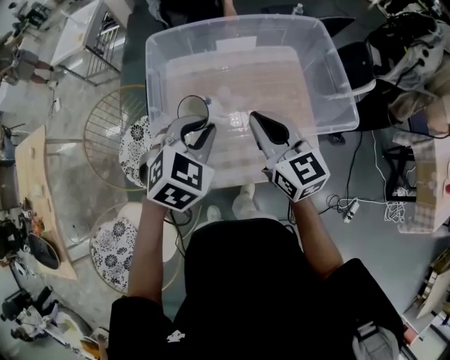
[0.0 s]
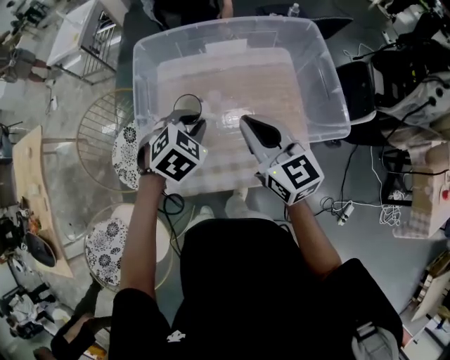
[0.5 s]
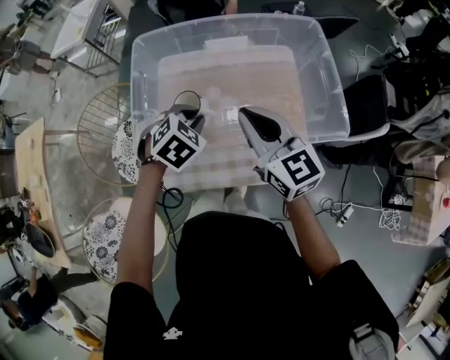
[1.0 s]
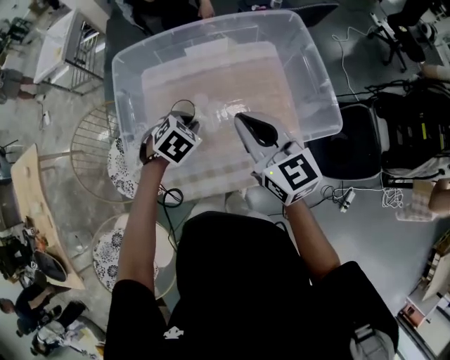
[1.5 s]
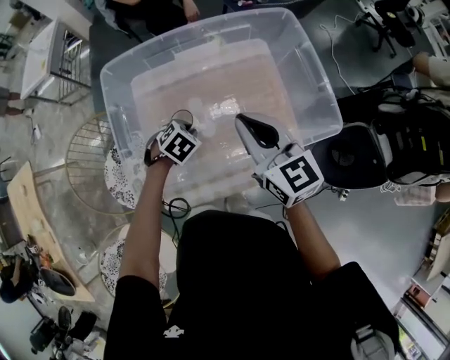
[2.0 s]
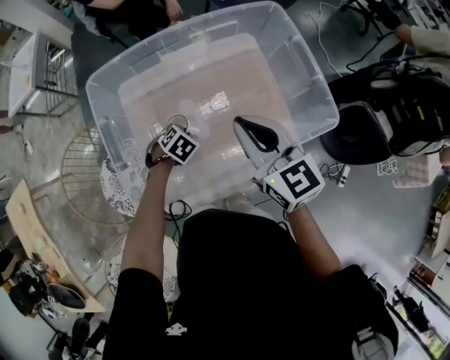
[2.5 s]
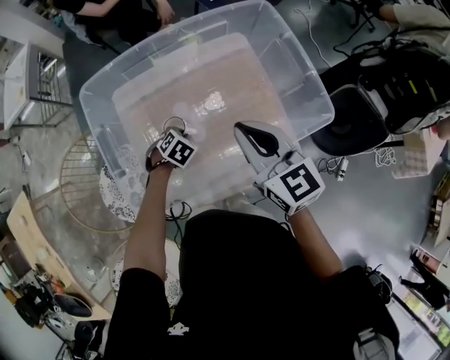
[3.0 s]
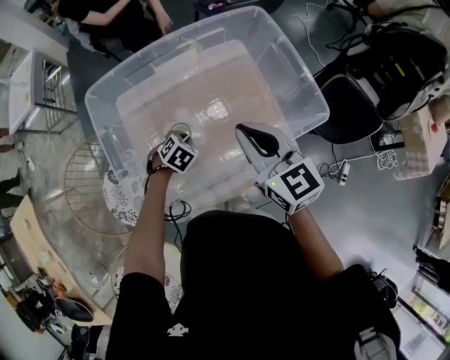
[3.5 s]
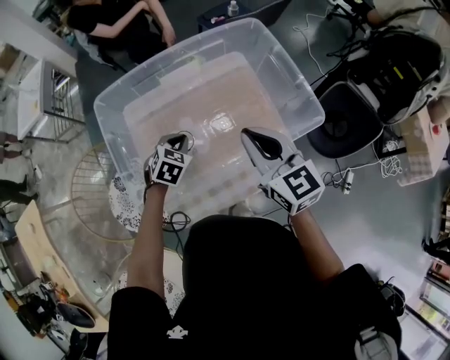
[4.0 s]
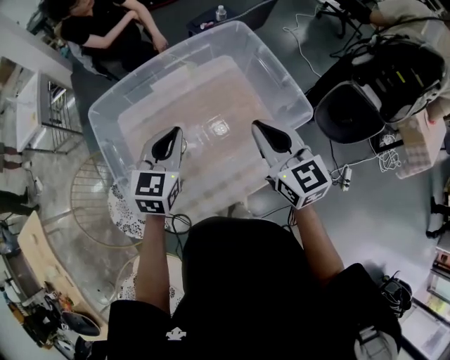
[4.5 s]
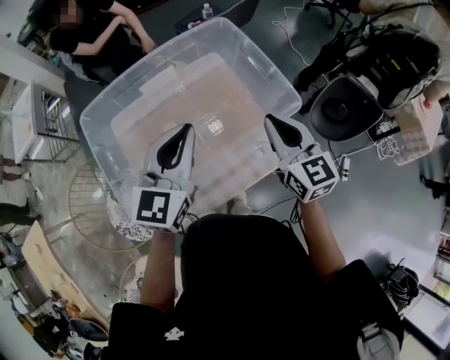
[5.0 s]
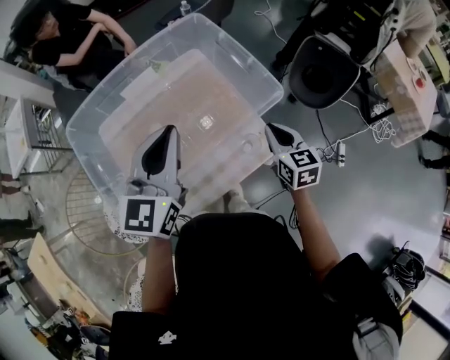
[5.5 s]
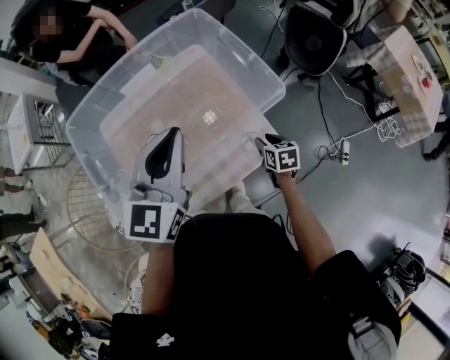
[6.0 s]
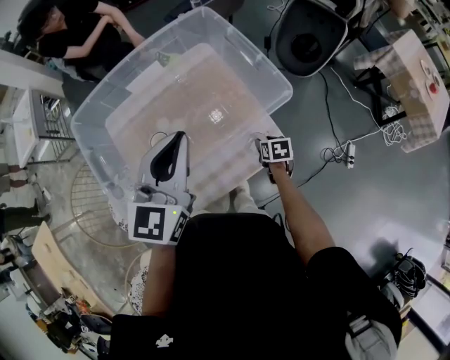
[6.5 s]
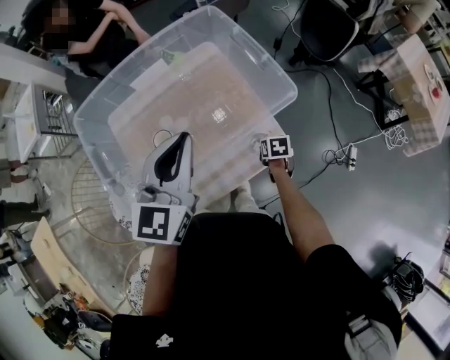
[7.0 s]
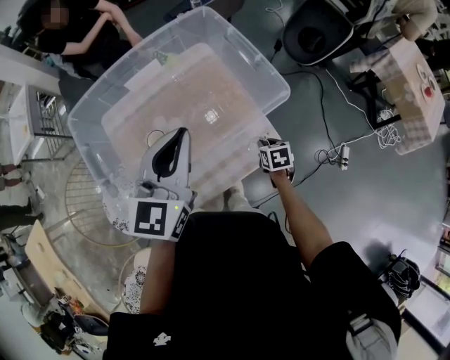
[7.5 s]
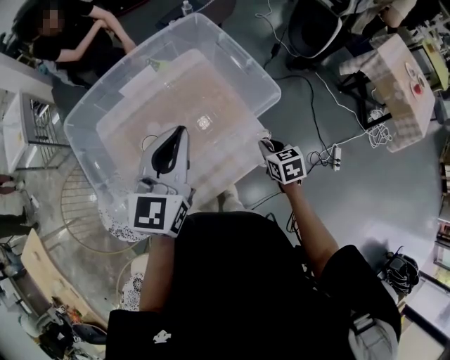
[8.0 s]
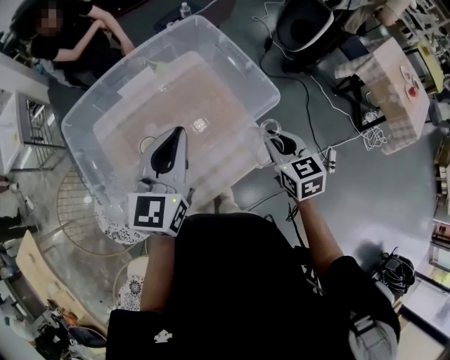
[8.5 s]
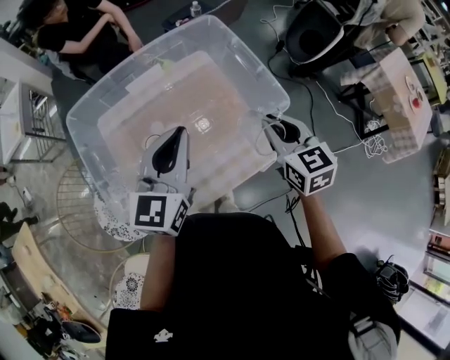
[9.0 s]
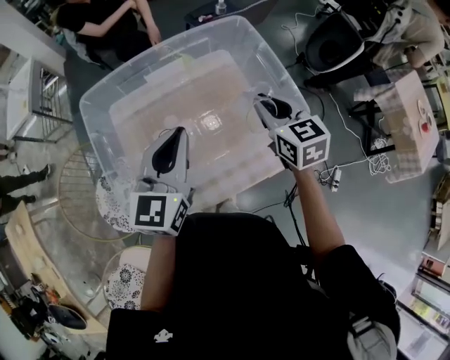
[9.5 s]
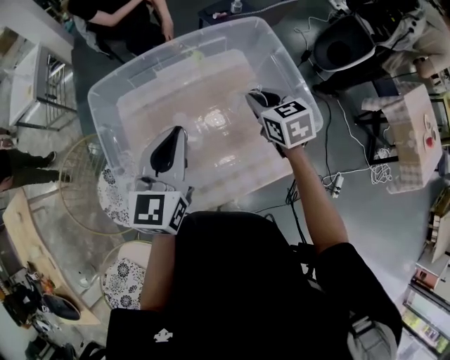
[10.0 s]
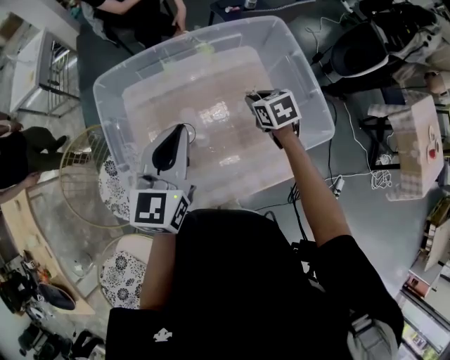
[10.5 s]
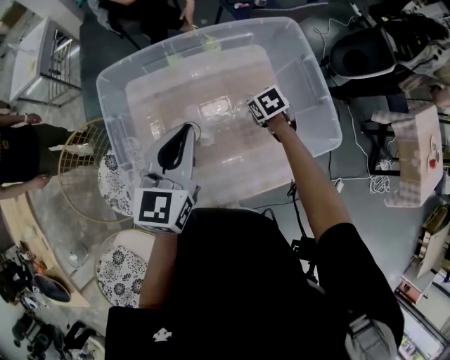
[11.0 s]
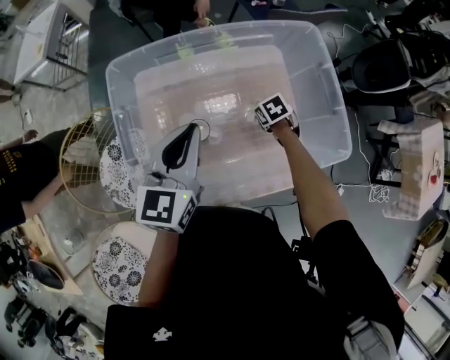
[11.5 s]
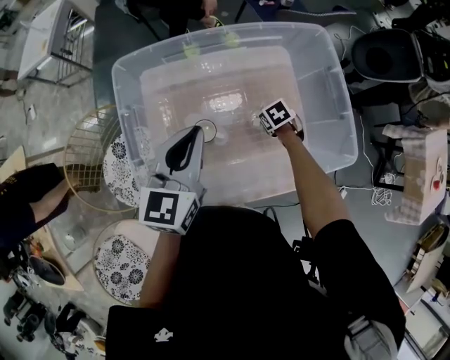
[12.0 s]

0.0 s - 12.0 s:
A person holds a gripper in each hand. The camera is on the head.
0.0 s - 2.0 s: The left gripper is displaced downward and forward by roughly 25 cm, and turns by about 30 degrees; the right gripper is displaced forward by roughly 5 cm.
2.0 s - 4.0 s: The left gripper reaches about 10 cm downward, then returns.
4.0 s - 6.0 s: The right gripper travels downward and to the right by approximately 35 cm, tilts its fingers roughly 40 degrees downward, and opens. Meanwhile the left gripper travels upward and to the right by approximately 30 cm, and tips its fingers upward by some 50 degrees.
6.0 s - 8.0 s: The right gripper is displaced upward by roughly 5 cm, and closes up.
8.0 s - 10.0 s: The left gripper moves to the left, approximately 10 cm. Meanwhile the right gripper goes roughly 30 cm forward, to the left and upward, and changes its angle by approximately 20 degrees.
10.0 s - 12.0 s: The left gripper ends up approximately 10 cm from where it was. The right gripper moves downward, roughly 25 cm, and angles its fingers downward, by about 40 degrees.

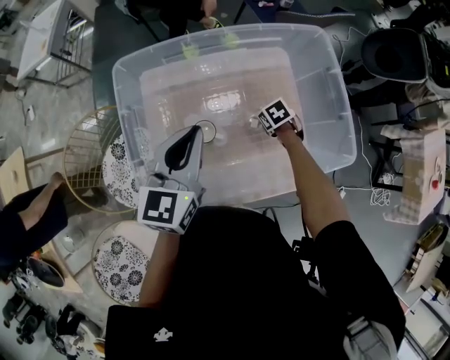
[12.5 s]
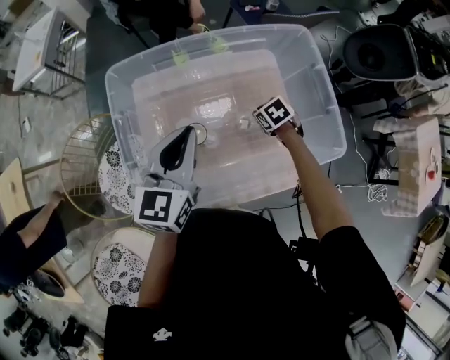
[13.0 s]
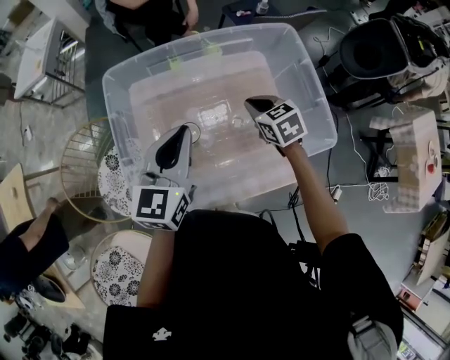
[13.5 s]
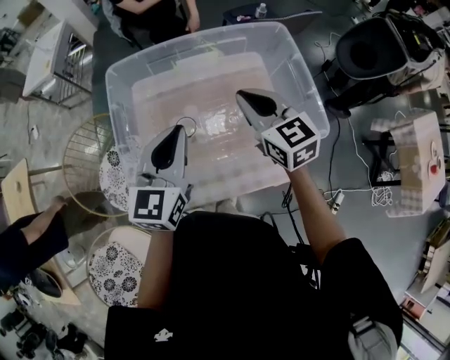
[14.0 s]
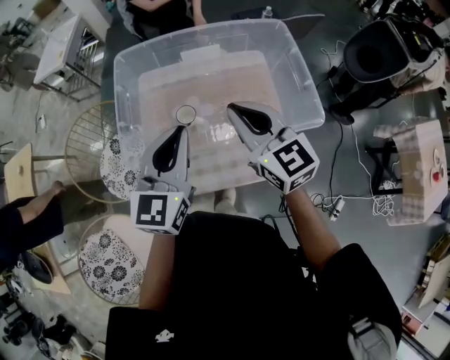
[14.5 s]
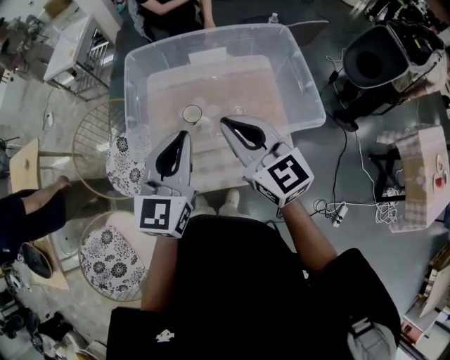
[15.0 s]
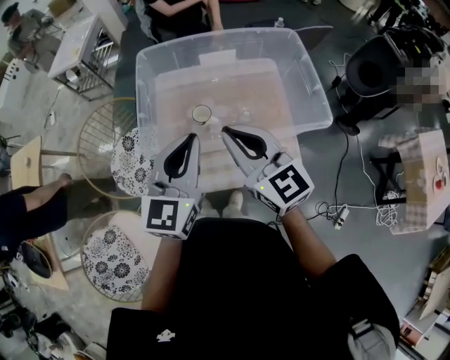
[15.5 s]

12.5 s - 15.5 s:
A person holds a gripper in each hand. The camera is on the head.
12.5 s - 14.0 s: The left gripper moves roughly 10 cm. Meanwhile the right gripper is displaced upward by some 35 cm, and tips its fingers upward by approximately 60 degrees.
14.0 s - 15.5 s: The left gripper is displaced backward by roughly 10 cm. The right gripper shifts roughly 20 cm backward and to the left.

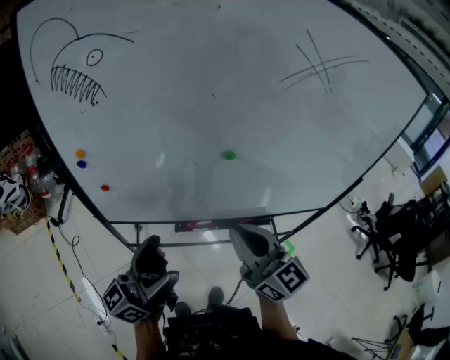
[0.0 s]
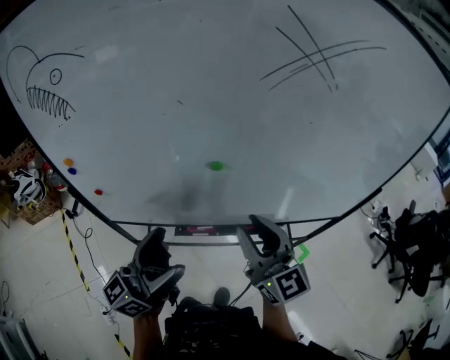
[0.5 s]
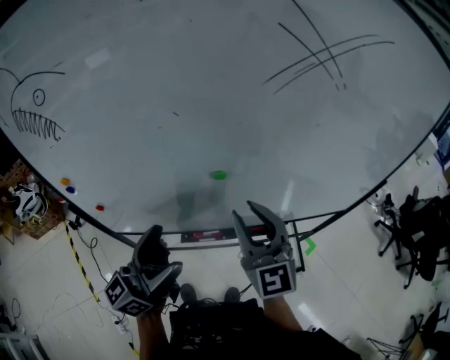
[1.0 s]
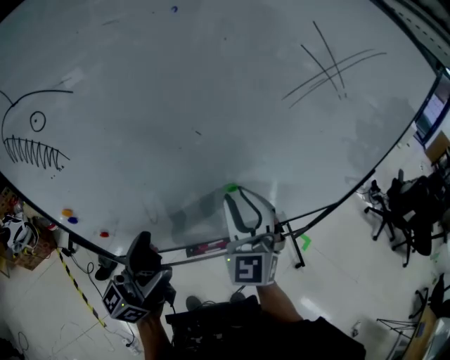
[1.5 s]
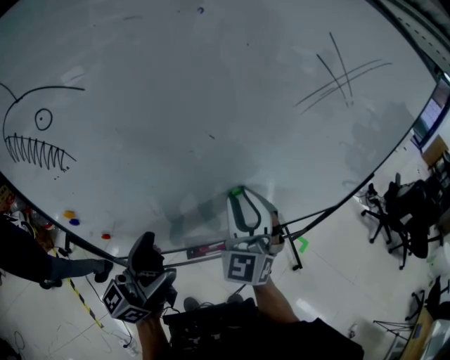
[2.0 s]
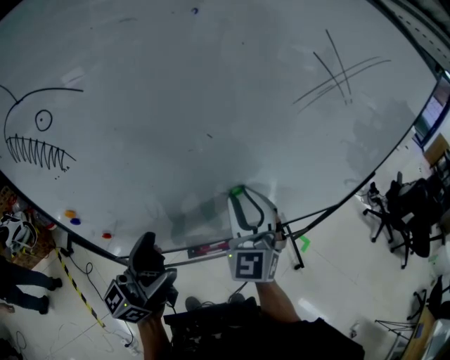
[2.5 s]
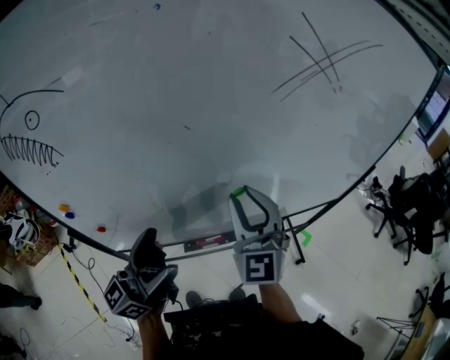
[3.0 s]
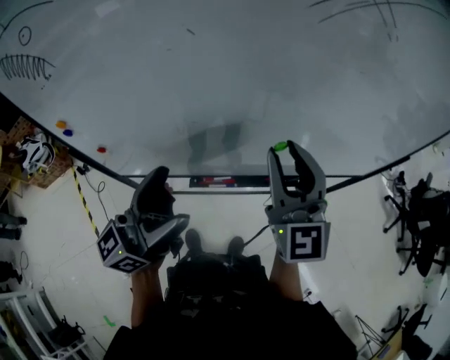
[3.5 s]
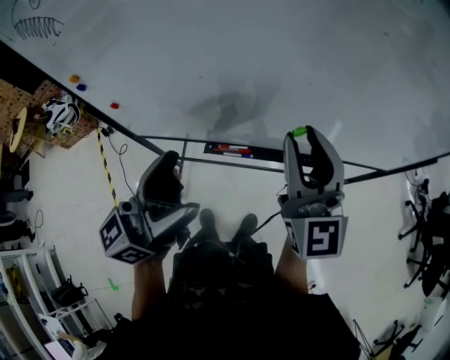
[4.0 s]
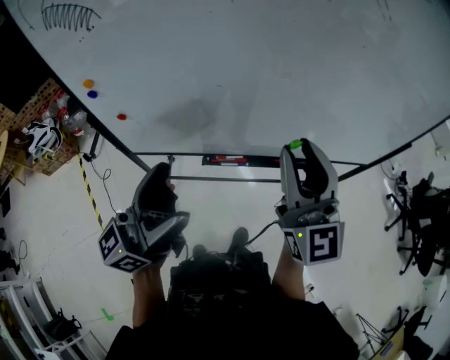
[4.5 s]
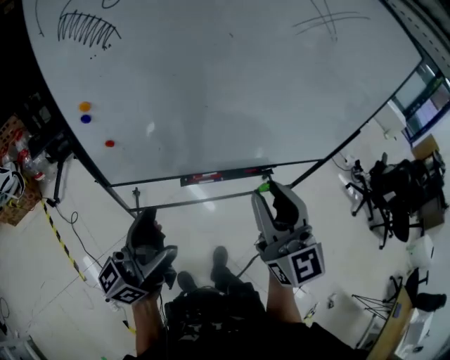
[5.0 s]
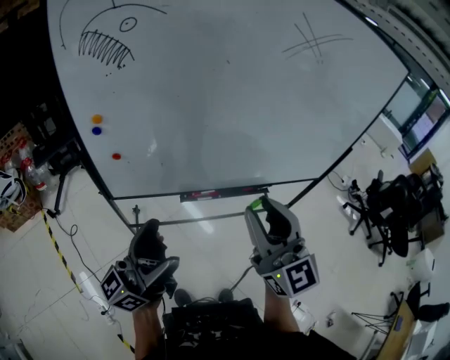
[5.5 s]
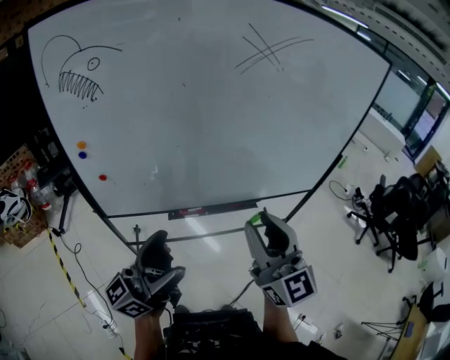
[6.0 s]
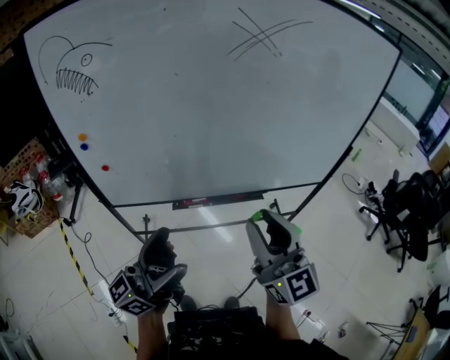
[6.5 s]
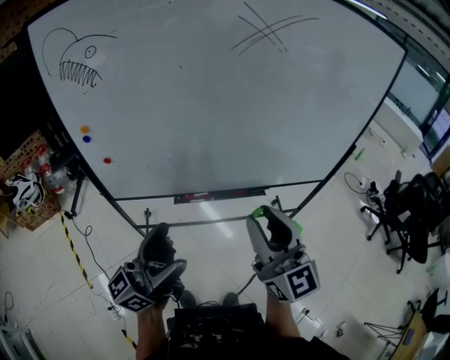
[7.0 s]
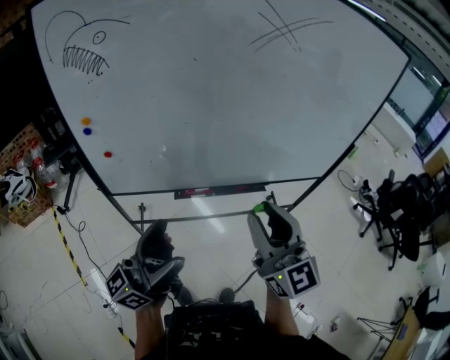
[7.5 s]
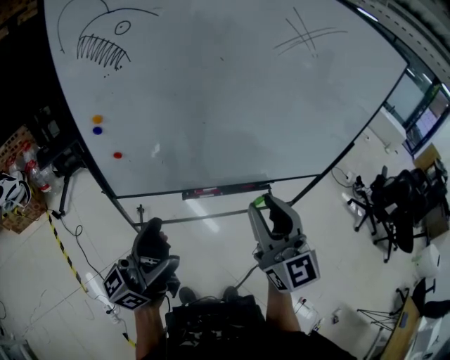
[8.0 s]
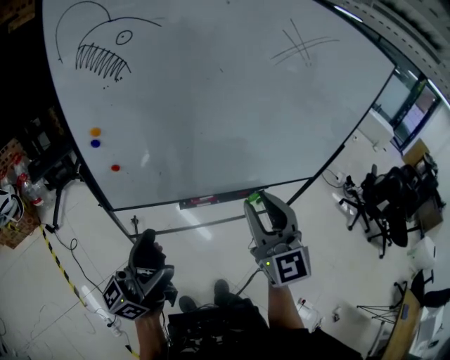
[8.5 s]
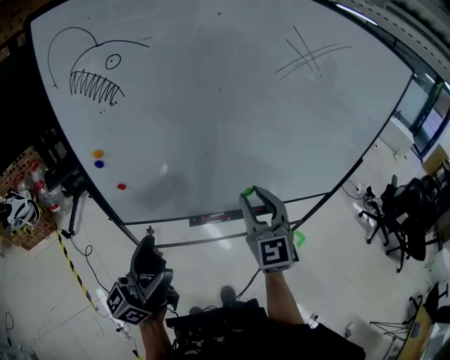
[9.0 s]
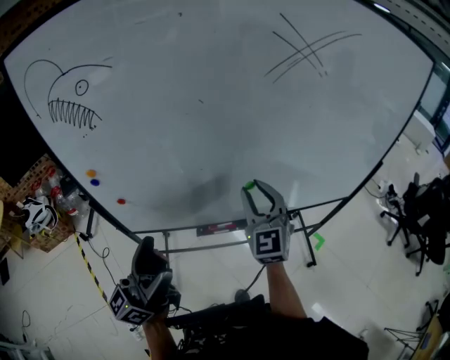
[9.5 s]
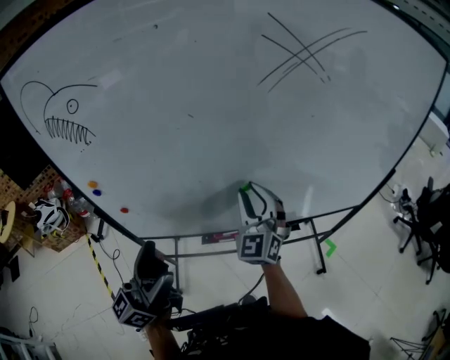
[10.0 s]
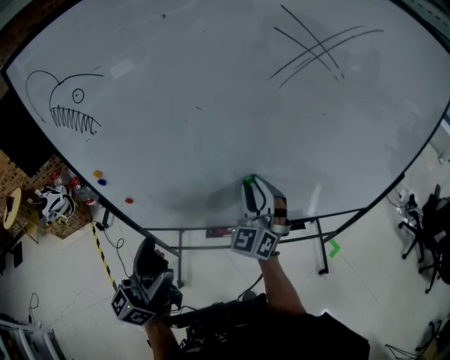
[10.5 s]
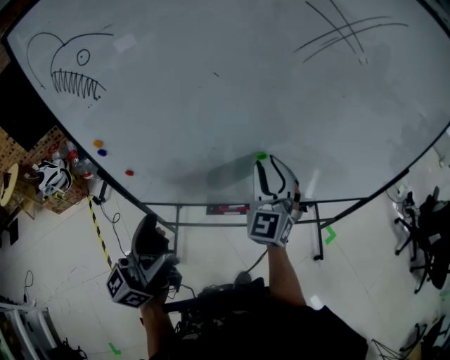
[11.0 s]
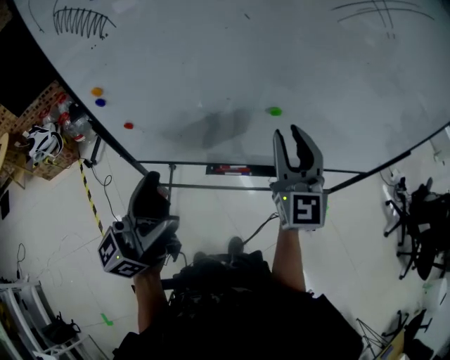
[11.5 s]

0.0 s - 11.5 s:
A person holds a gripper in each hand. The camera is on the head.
0.0 s - 2.0 s: Both grippers move forward, roughly 15 cm. The right gripper turns by roughly 60 degrees, and opens its fingers.
2.0 s - 4.0 s: The right gripper heads to the right and backward, covering roughly 15 cm, and swivels some 40 degrees; the left gripper travels to the right by roughly 15 cm.
4.0 s - 6.0 s: Both grippers travel together backward, approximately 20 cm. The left gripper rotates about 20 degrees.
6.0 s - 7.5 s: The grippers move only a little.
7.5 s - 9.5 s: The left gripper goes roughly 15 cm forward and to the left; the right gripper moves forward, approximately 25 cm, and turns by roughly 30 degrees.
